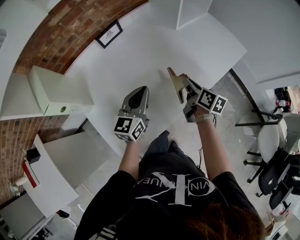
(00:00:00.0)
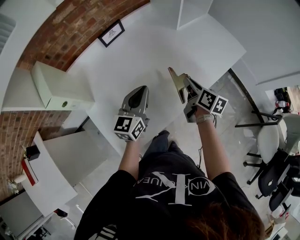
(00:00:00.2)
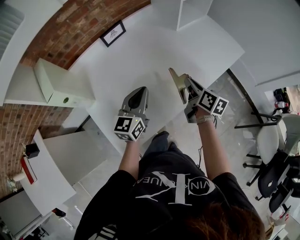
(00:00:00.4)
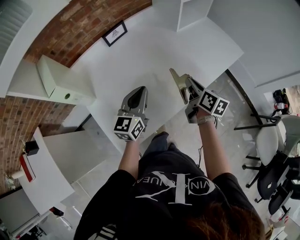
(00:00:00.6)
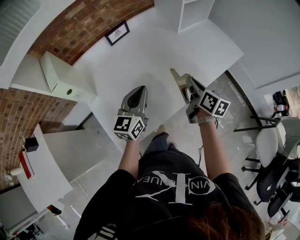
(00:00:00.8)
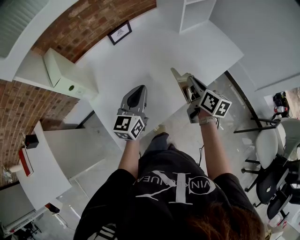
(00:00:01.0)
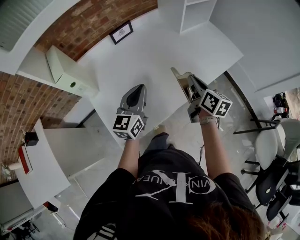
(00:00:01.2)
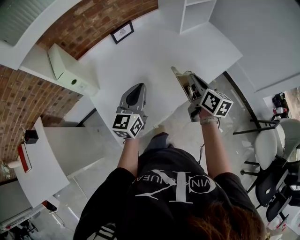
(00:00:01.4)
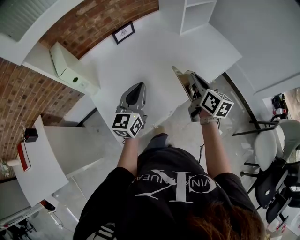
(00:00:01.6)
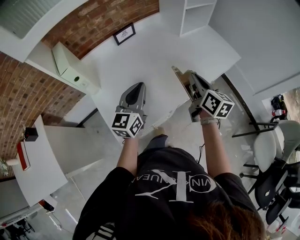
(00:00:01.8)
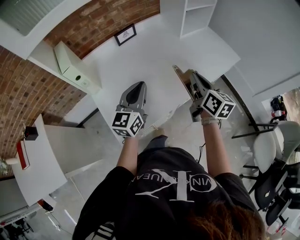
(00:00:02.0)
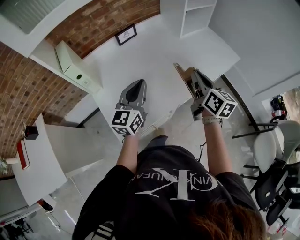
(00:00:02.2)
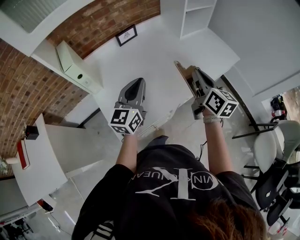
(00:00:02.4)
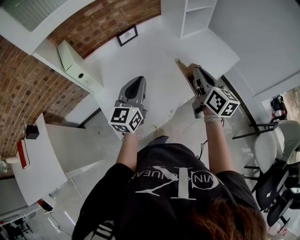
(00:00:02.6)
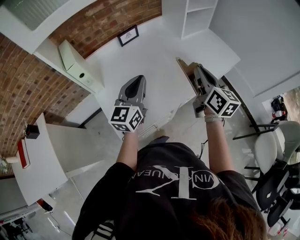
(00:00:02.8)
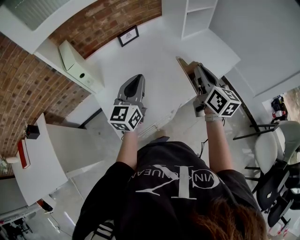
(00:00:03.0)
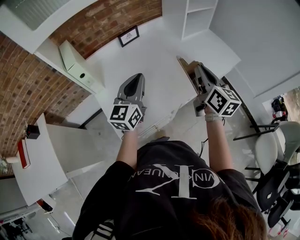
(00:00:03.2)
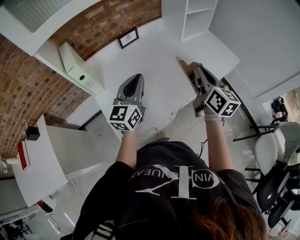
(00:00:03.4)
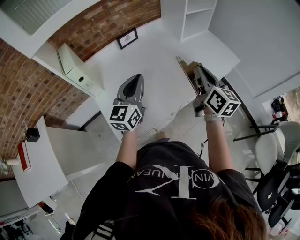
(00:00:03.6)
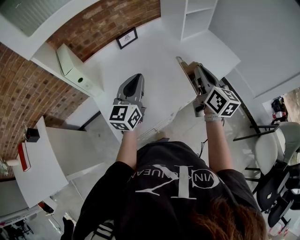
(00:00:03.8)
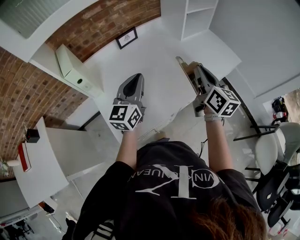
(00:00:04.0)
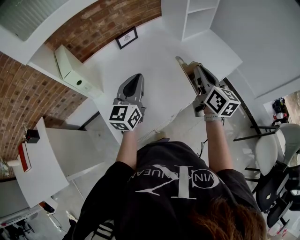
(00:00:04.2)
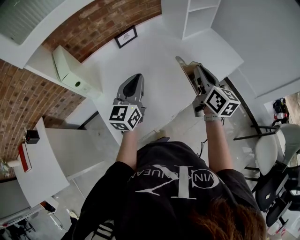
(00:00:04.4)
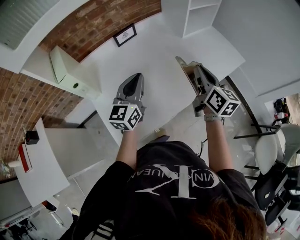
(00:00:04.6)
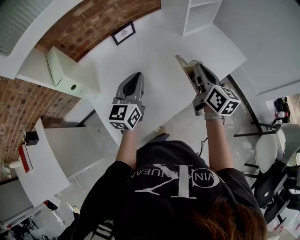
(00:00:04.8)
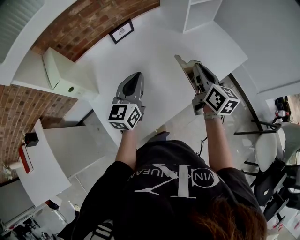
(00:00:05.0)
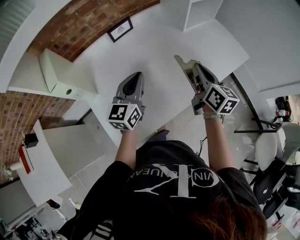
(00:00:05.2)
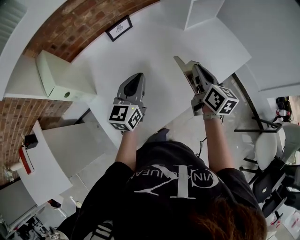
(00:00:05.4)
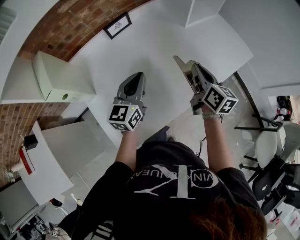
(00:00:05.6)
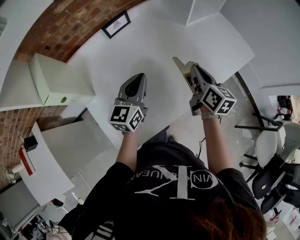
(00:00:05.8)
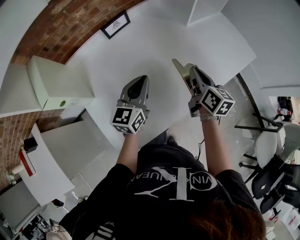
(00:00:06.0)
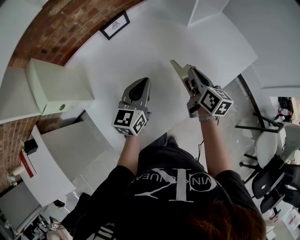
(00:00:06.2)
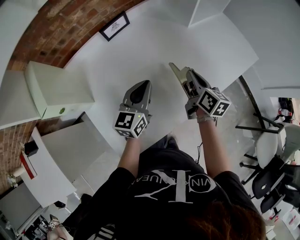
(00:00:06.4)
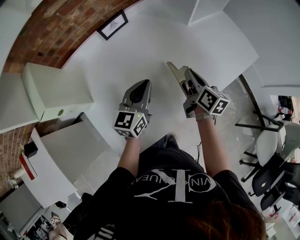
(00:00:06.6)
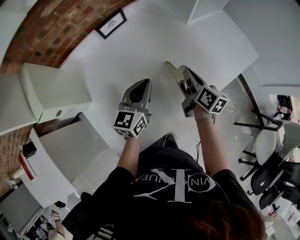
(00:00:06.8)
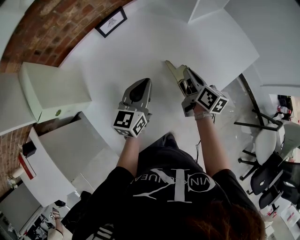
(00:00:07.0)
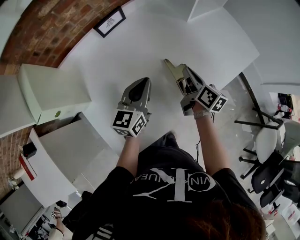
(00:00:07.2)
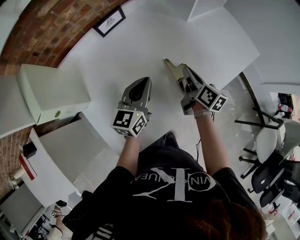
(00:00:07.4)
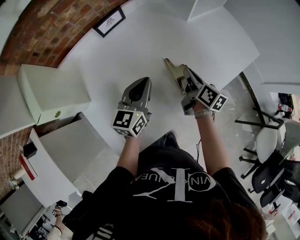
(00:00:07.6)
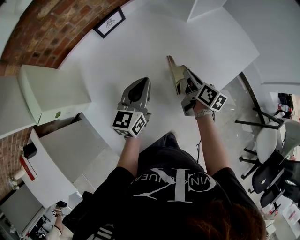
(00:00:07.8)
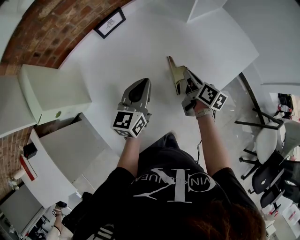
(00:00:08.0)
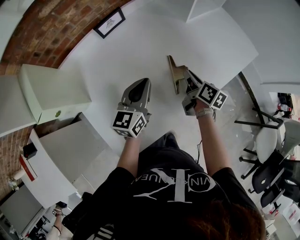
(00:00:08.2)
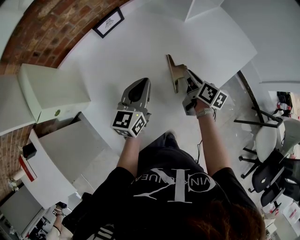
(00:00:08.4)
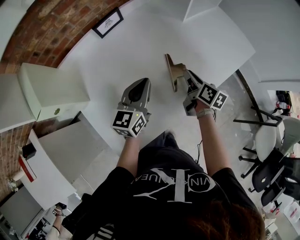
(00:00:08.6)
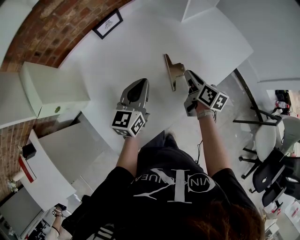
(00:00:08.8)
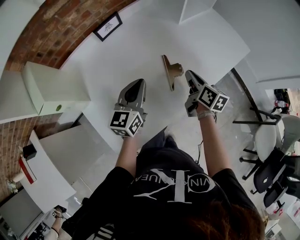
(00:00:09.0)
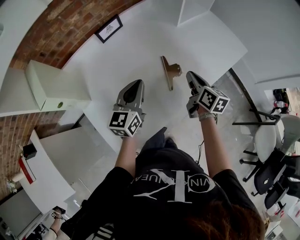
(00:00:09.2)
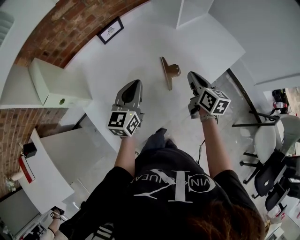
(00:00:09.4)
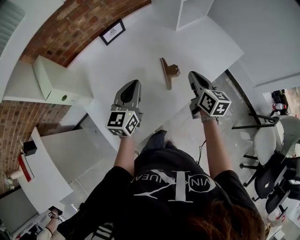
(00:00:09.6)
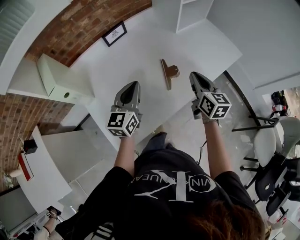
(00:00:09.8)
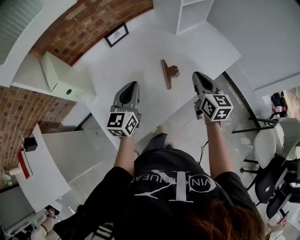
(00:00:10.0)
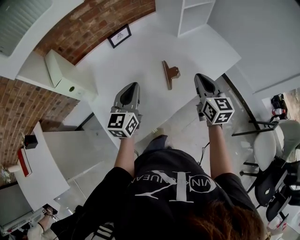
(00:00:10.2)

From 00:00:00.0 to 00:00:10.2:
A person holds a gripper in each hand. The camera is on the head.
From 00:00:00.0 to 00:00:01.4: The left gripper travels backward and upward by about 10 cm. The right gripper is displaced upward and backward by roughly 10 cm.
From 00:00:01.4 to 00:00:03.0: The right gripper goes some 10 cm upward. The left gripper heads upward, covering some 5 cm.
From 00:00:03.0 to 00:00:04.4: Both grippers travel together forward, some 5 cm.
From 00:00:04.4 to 00:00:05.8: Both grippers travel together downward and forward, about 10 cm.
From 00:00:05.8 to 00:00:07.2: The right gripper goes roughly 10 cm downward.
From 00:00:07.2 to 00:00:08.8: There are only small adjustments of the grippers.
From 00:00:08.8 to 00:00:10.2: The right gripper goes approximately 20 cm upward and backward, and rotates some 40 degrees; the left gripper travels upward and backward by approximately 10 cm.

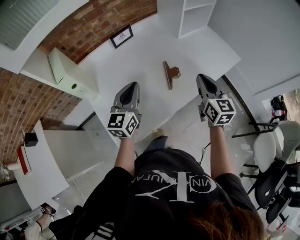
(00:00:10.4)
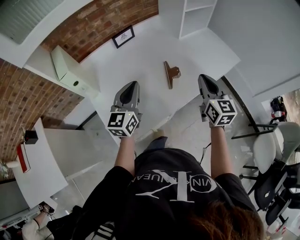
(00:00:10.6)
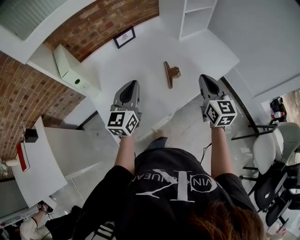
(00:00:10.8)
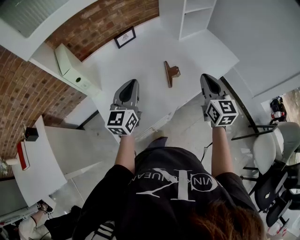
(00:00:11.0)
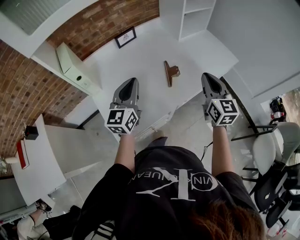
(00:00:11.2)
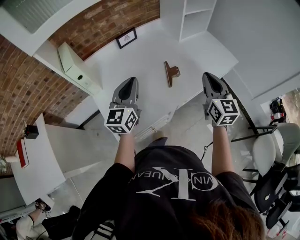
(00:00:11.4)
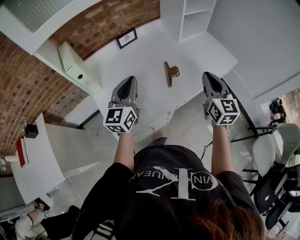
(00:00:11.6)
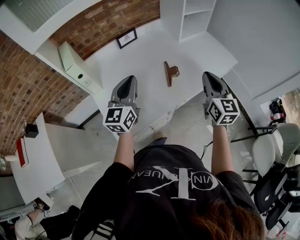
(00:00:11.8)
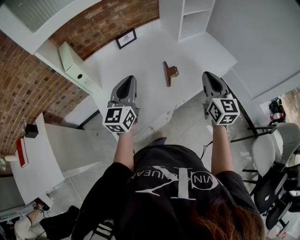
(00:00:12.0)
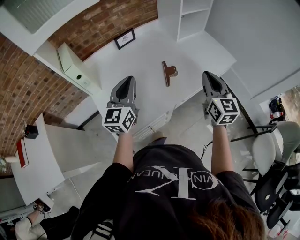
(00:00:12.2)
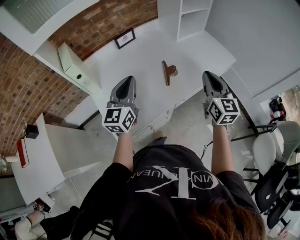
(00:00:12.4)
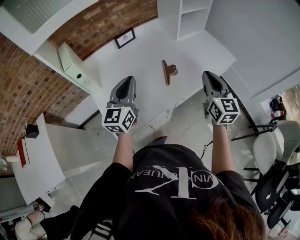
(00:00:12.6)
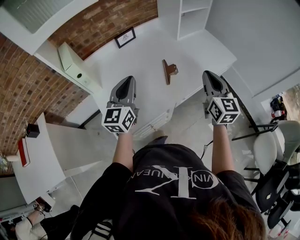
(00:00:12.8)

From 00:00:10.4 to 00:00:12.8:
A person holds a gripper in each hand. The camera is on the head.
From 00:00:10.4 to 00:00:11.6: The right gripper moves upward, about 5 cm, while the left gripper ends up about 5 cm from where it was.
From 00:00:11.6 to 00:00:12.8: The grippers move only a little.

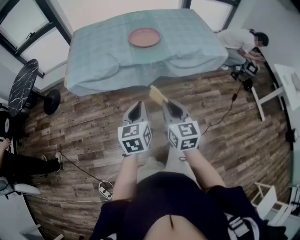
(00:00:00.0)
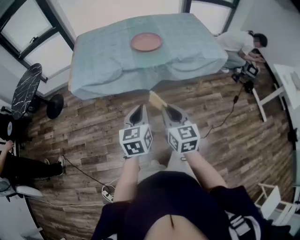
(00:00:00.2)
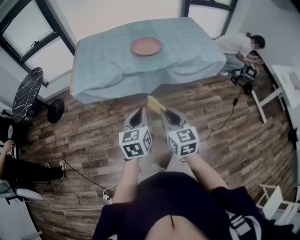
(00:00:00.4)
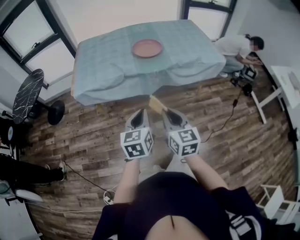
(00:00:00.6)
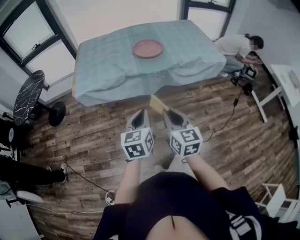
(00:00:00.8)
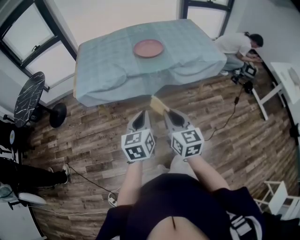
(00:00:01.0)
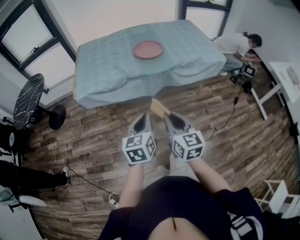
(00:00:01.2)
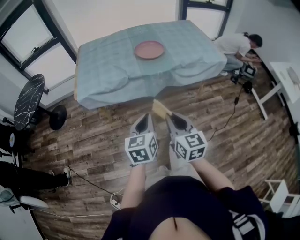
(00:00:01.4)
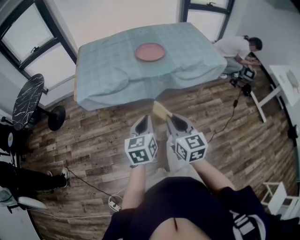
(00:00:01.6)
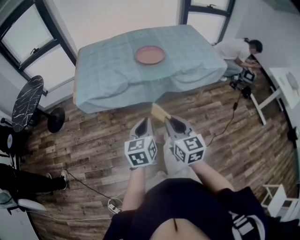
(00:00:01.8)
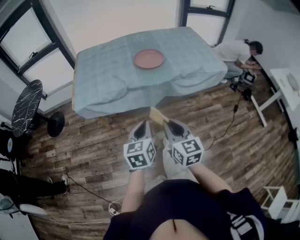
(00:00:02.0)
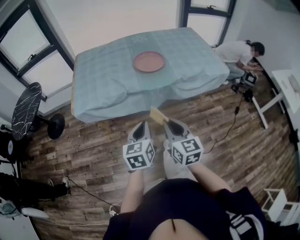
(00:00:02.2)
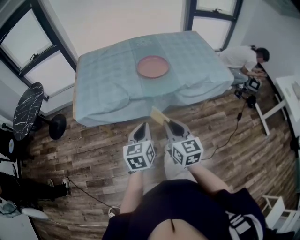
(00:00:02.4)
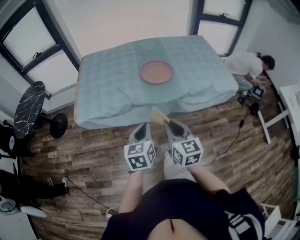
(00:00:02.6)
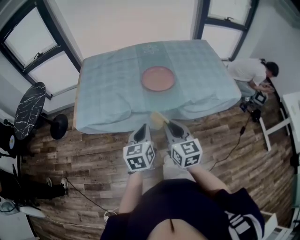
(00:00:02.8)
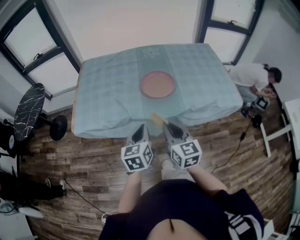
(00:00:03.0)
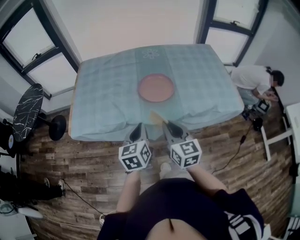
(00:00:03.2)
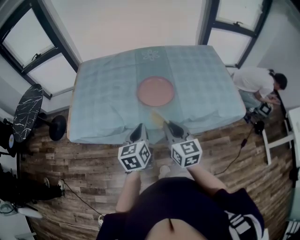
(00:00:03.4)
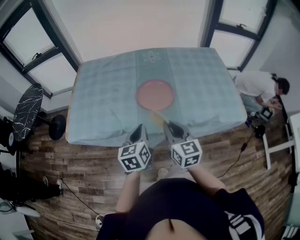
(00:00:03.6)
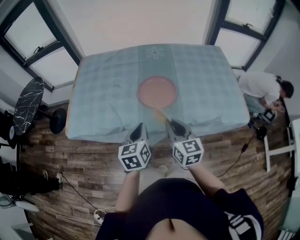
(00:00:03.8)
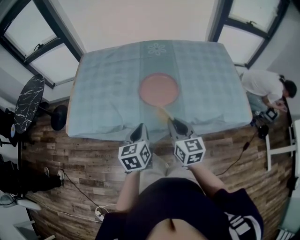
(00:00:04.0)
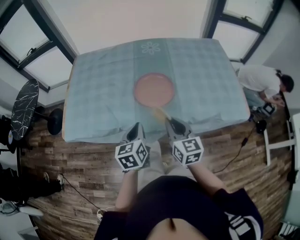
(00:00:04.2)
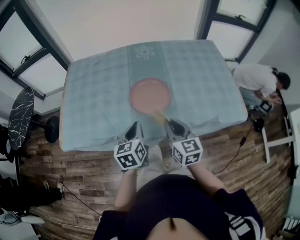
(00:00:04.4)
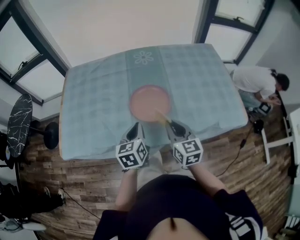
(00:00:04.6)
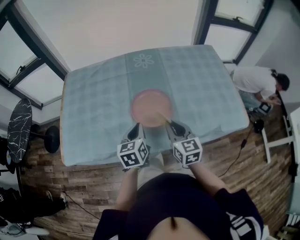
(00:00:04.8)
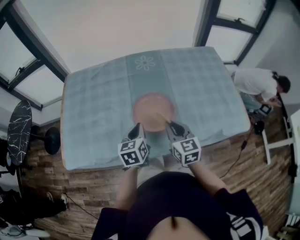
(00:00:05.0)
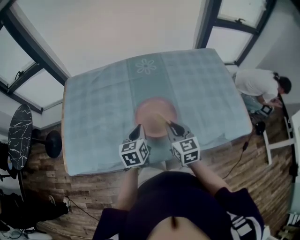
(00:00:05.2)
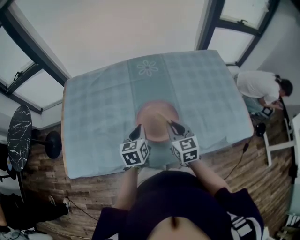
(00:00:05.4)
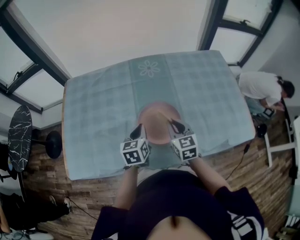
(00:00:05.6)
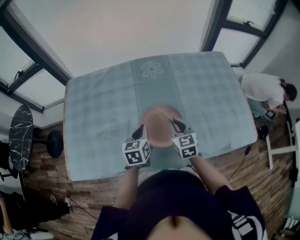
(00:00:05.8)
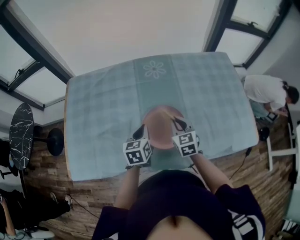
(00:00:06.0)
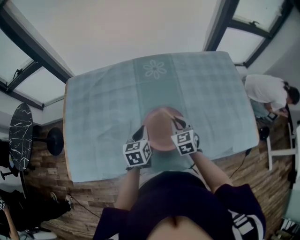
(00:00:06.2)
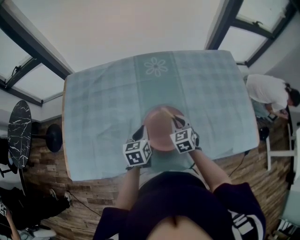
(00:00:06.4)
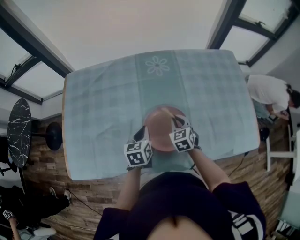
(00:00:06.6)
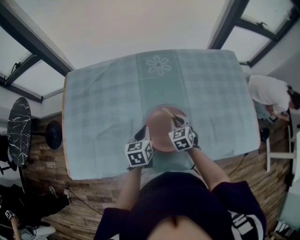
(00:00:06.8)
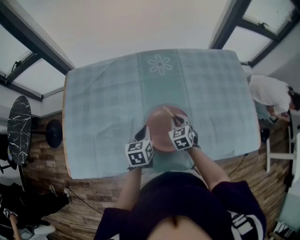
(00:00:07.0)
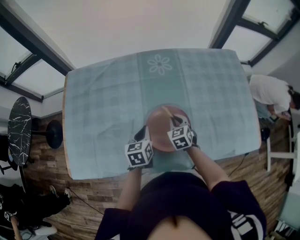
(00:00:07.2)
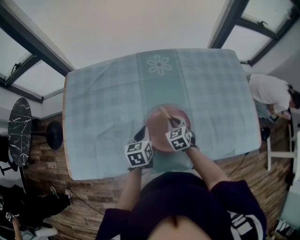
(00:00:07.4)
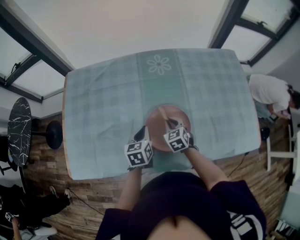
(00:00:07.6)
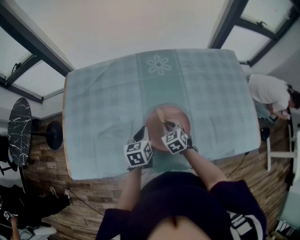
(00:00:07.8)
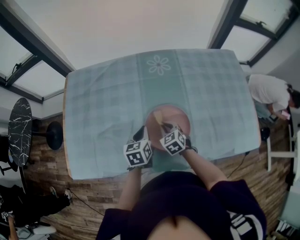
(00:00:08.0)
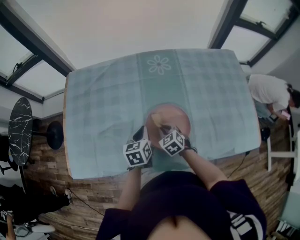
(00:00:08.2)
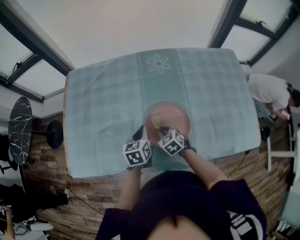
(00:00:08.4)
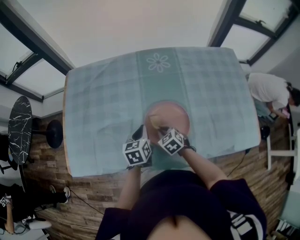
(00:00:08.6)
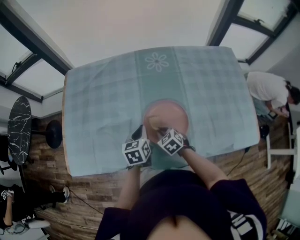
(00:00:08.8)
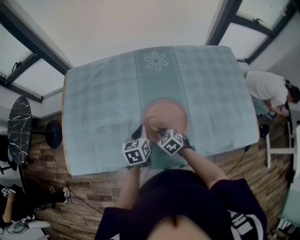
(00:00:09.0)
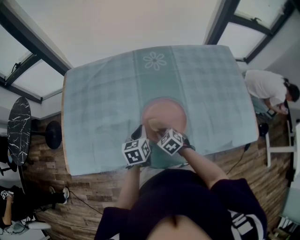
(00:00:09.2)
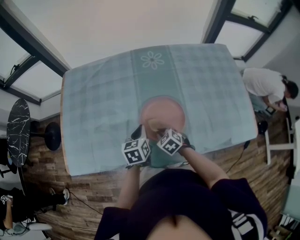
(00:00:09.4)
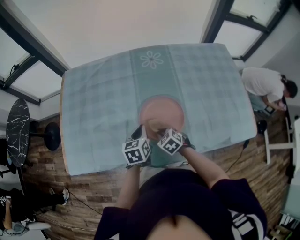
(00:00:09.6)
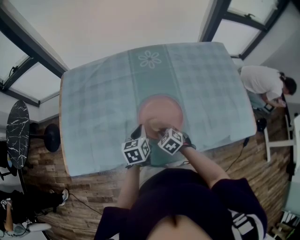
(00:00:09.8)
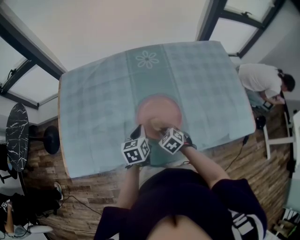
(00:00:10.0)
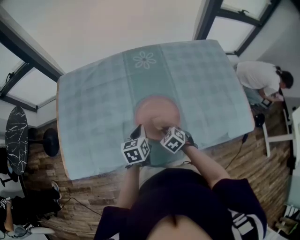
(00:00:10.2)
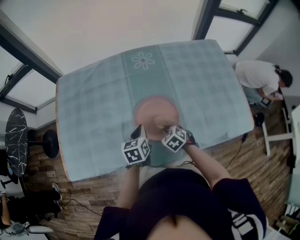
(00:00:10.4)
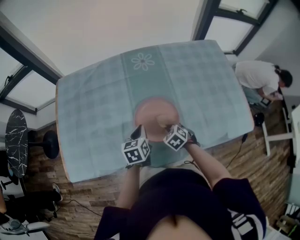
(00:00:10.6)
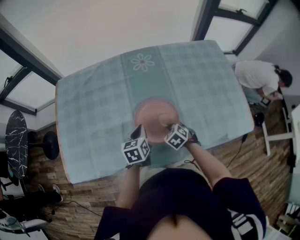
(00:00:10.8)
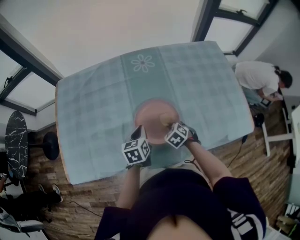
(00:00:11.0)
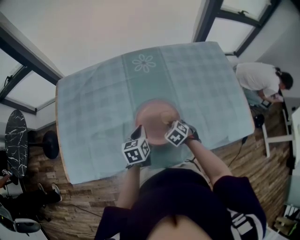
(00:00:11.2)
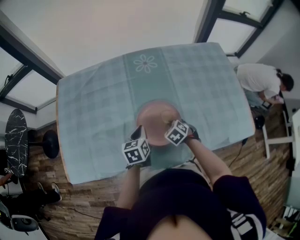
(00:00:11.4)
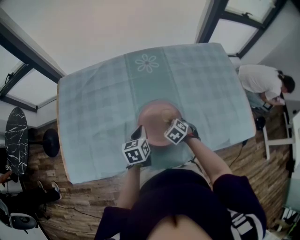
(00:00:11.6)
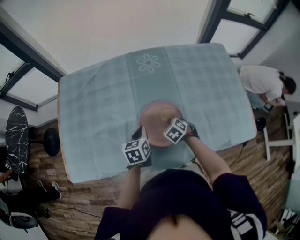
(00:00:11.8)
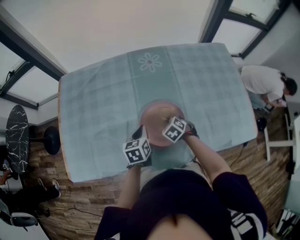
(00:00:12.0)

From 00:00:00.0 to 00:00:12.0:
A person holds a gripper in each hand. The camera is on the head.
From 00:00:00.0 to 00:00:01.6: The right gripper goes some 5 cm to the left; the left gripper ends up roughly 5 cm from where it was.
From 00:00:01.6 to 00:00:03.0: The two grippers go some 30 cm forward.
From 00:00:03.0 to 00:00:04.4: The right gripper heads forward and to the right, covering about 20 cm. The left gripper moves forward, about 15 cm.
From 00:00:04.4 to 00:00:06.0: Both grippers travel together forward, about 25 cm.
From 00:00:06.0 to 00:00:07.6: The right gripper shifts some 10 cm downward.
From 00:00:07.6 to 00:00:09.0: The right gripper shifts approximately 10 cm backward and to the left, and turns by approximately 20 degrees.
From 00:00:09.0 to 00:00:10.4: The right gripper moves to the right, roughly 5 cm.
From 00:00:10.4 to 00:00:12.0: The right gripper goes some 10 cm forward.
